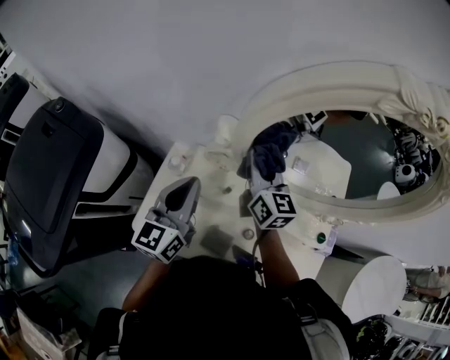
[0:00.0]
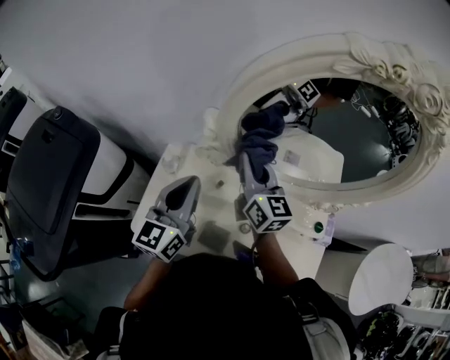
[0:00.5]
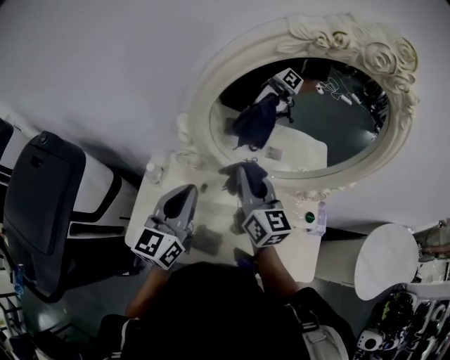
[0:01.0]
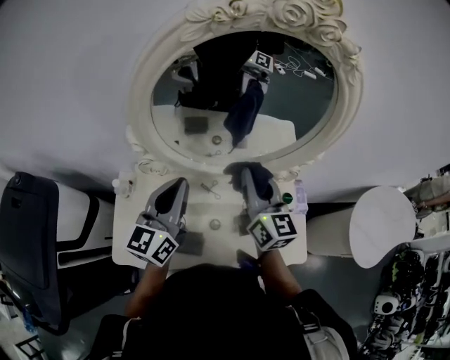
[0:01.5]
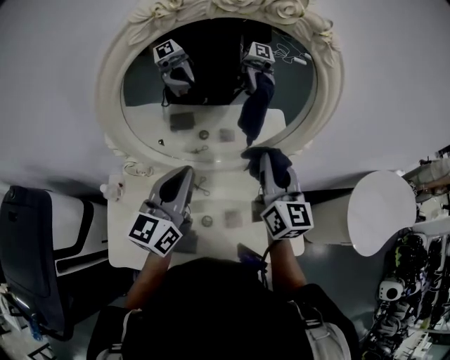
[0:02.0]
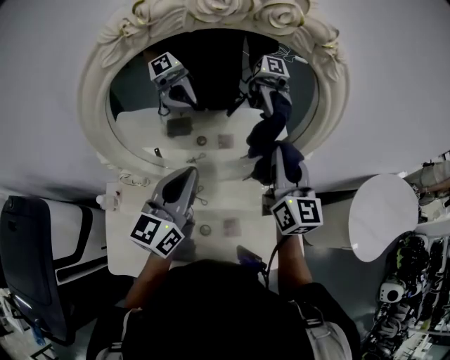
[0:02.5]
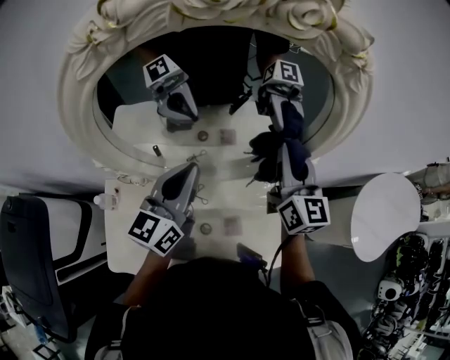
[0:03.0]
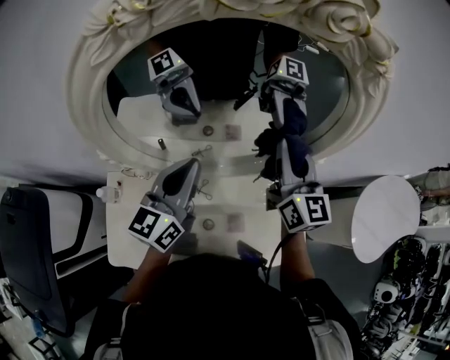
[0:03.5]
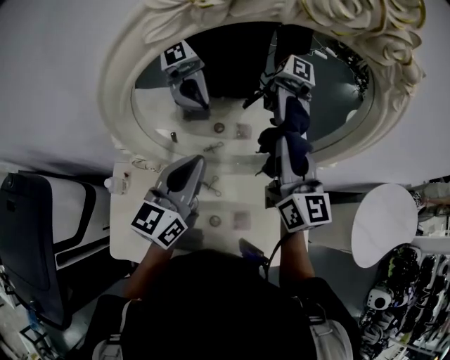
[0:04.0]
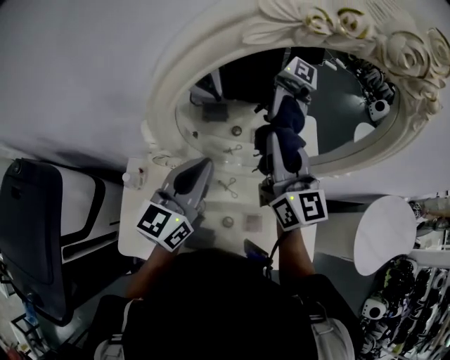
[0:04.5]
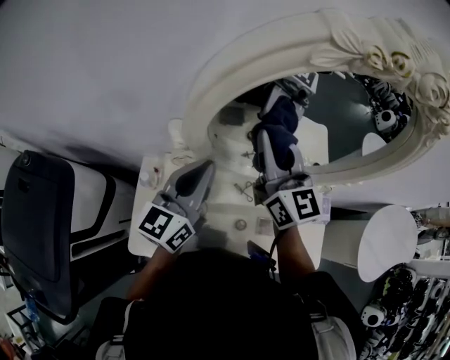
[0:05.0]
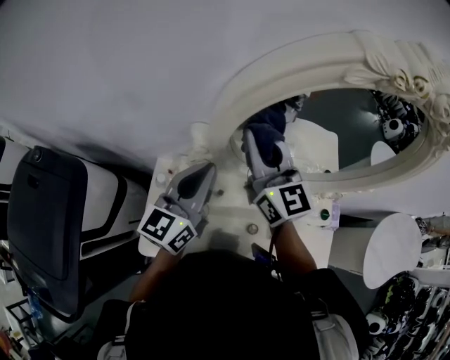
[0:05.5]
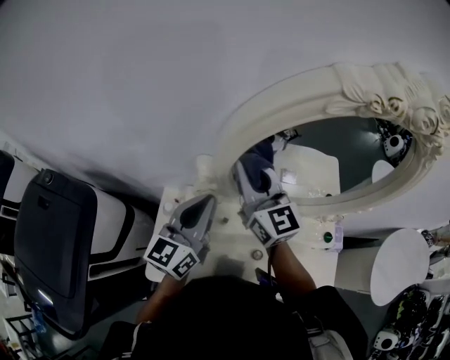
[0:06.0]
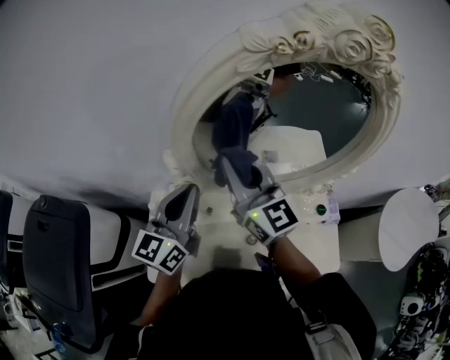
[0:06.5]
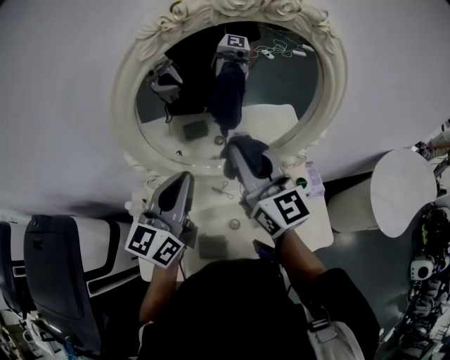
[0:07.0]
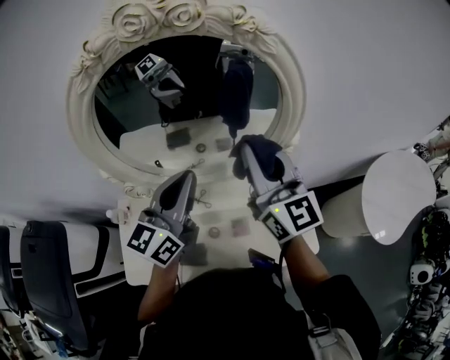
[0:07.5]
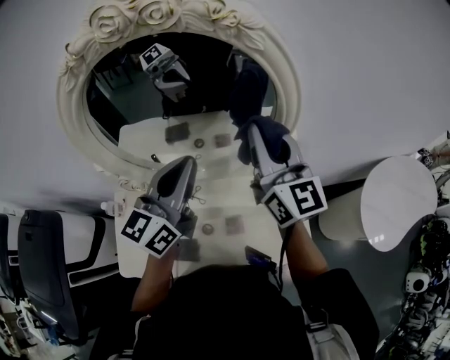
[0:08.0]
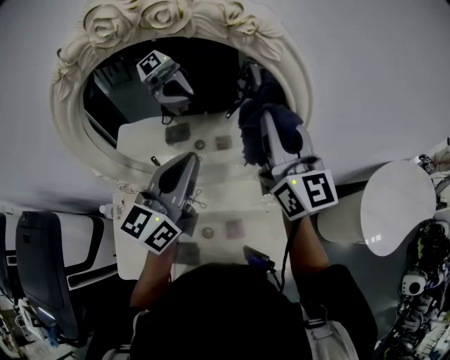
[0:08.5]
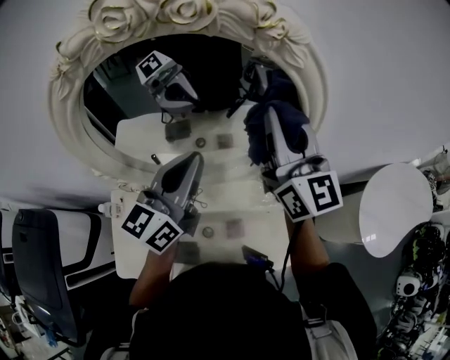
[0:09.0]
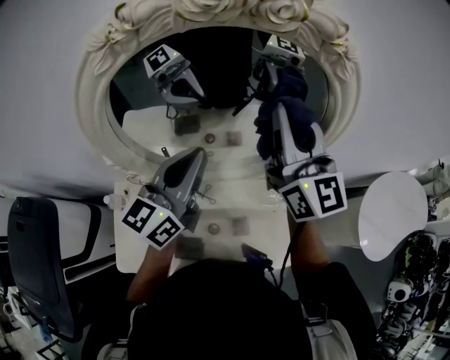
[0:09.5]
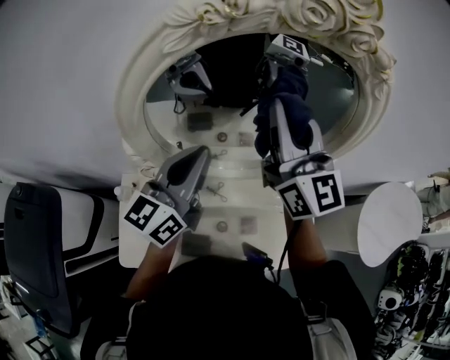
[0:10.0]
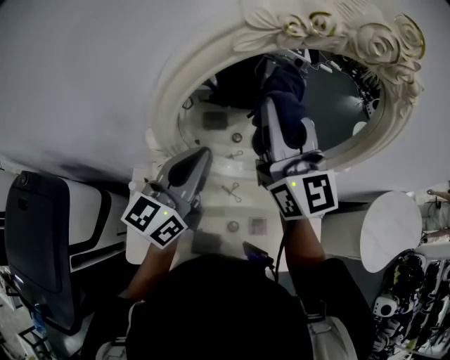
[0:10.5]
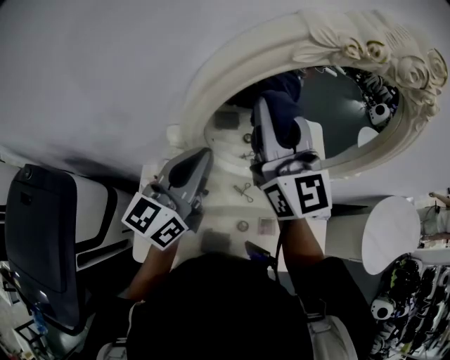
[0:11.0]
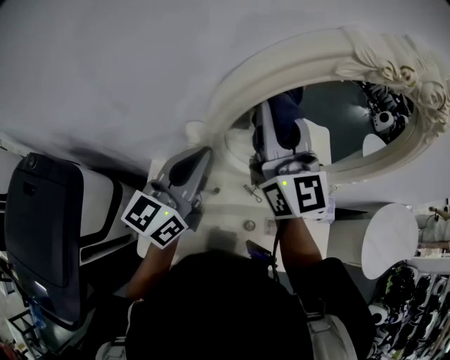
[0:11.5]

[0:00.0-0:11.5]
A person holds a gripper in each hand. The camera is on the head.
0:00.0 to 0:02.0: The left gripper moves approximately 25 cm, and turns by approximately 30 degrees; the right gripper shifts by some 35 cm, and swivels approximately 30 degrees.
0:02.0 to 0:04.0: The left gripper heads forward, covering roughly 5 cm. Meanwhile the right gripper heads forward and to the left, covering about 10 cm.
0:04.0 to 0:06.0: The right gripper shifts roughly 30 cm to the left, and swivels approximately 20 degrees. Meanwhile the left gripper goes roughly 15 cm to the left.
0:06.0 to 0:07.5: The two grippers go about 30 cm to the right.
0:07.5 to 0:09.5: The left gripper goes roughly 5 cm forward. Meanwhile the right gripper goes roughly 10 cm forward and upward.
0:09.5 to 0:11.5: Both grippers travel together to the left, roughly 25 cm.

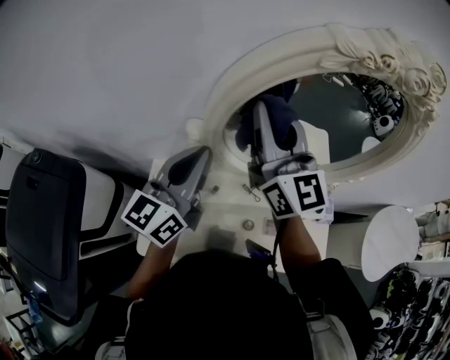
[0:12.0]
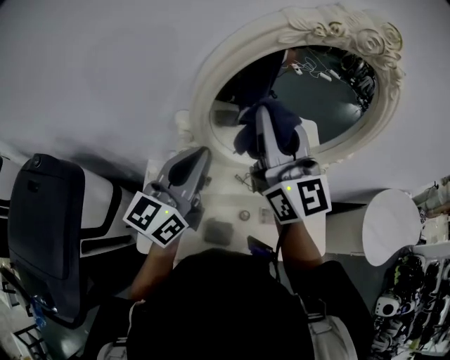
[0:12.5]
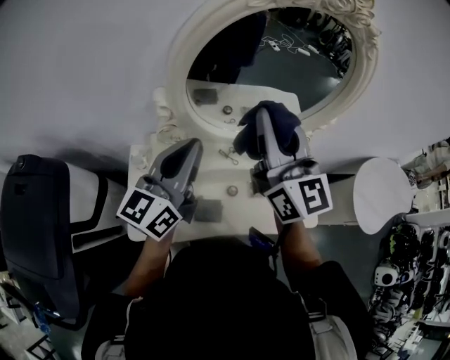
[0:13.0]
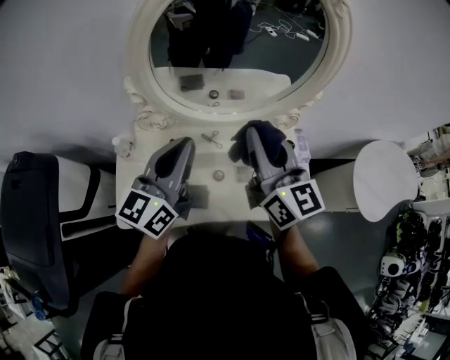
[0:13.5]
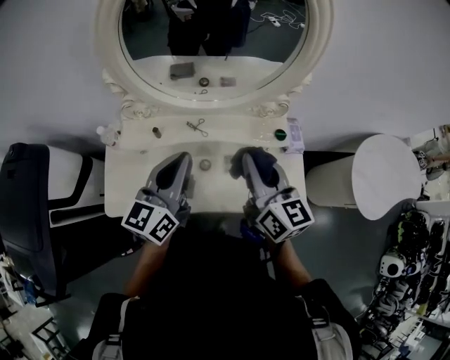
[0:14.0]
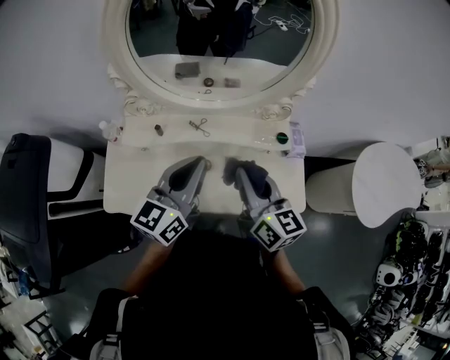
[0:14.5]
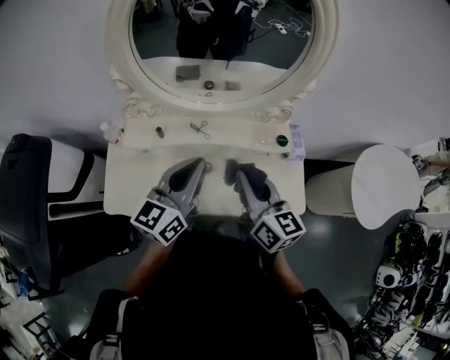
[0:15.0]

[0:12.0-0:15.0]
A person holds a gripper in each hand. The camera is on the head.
0:12.0 to 0:13.5: The right gripper moves to the right, backward and downward, some 25 cm, while the left gripper is displaced to the right and backward by about 20 cm.
0:13.5 to 0:15.0: The right gripper moves downward, to the right and backward, approximately 15 cm. The left gripper goes approximately 15 cm to the right and downward.

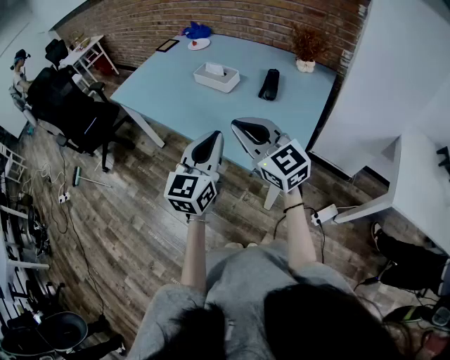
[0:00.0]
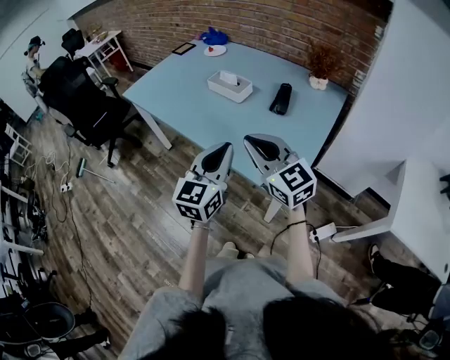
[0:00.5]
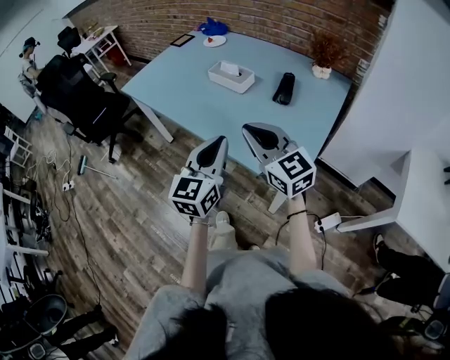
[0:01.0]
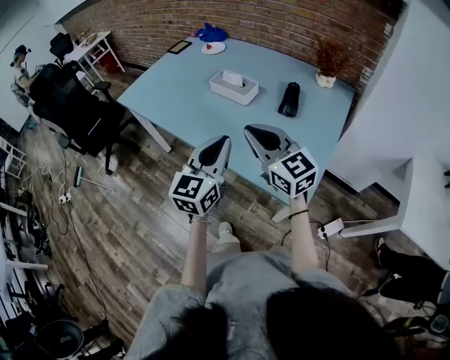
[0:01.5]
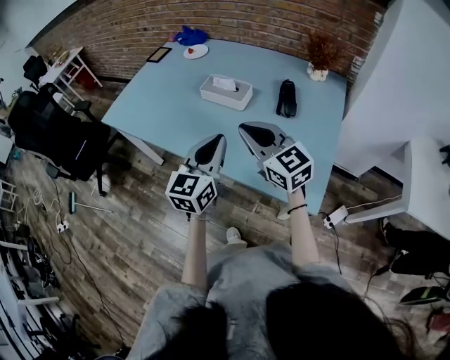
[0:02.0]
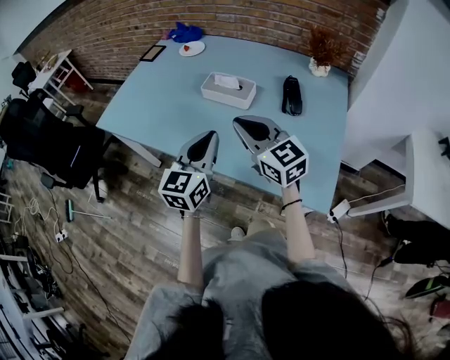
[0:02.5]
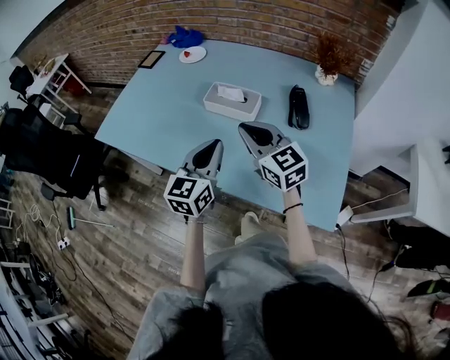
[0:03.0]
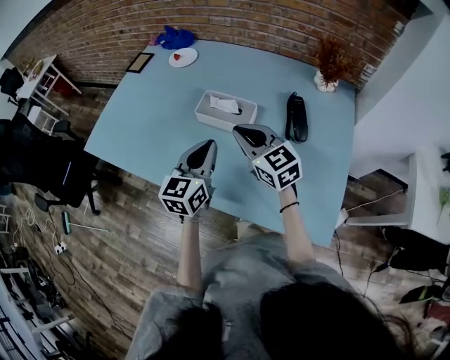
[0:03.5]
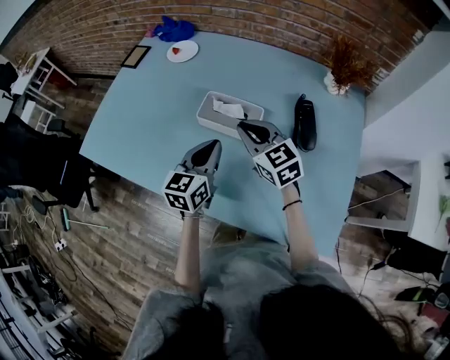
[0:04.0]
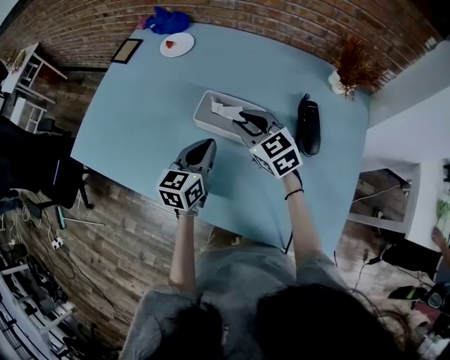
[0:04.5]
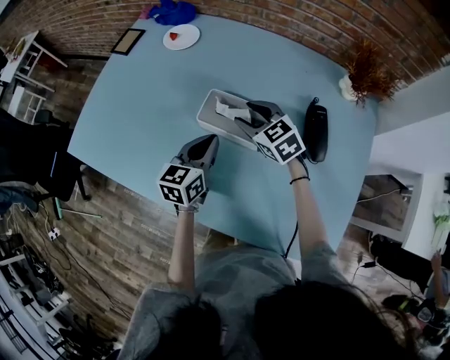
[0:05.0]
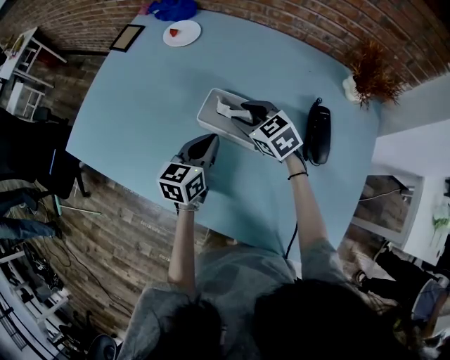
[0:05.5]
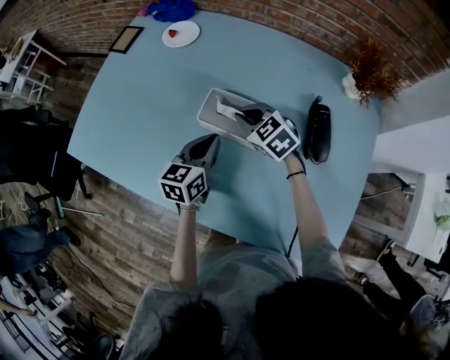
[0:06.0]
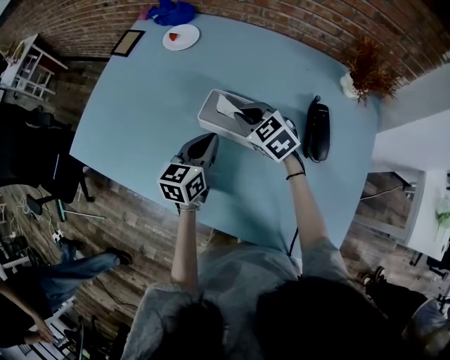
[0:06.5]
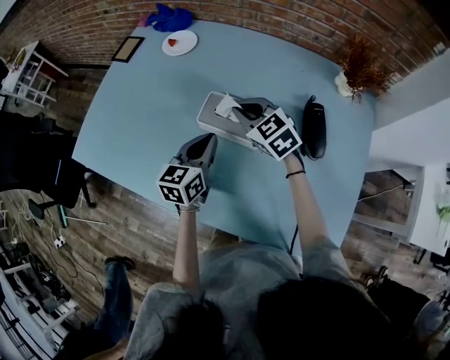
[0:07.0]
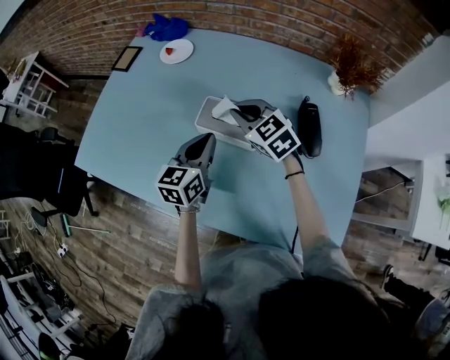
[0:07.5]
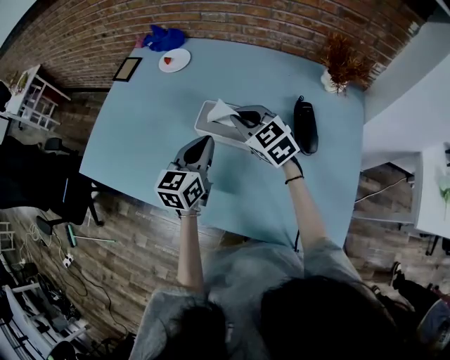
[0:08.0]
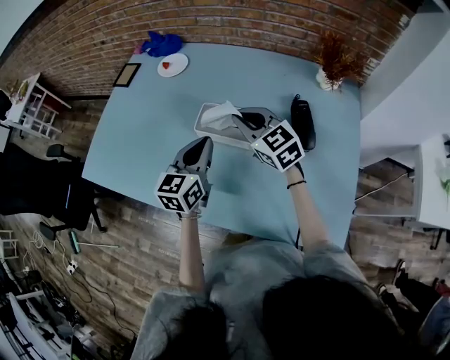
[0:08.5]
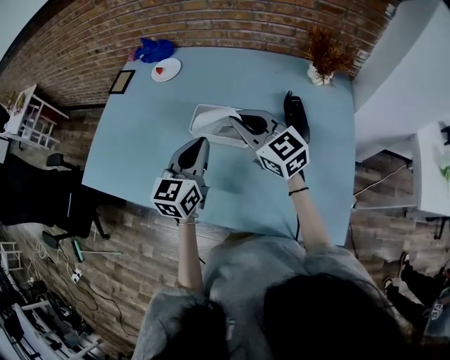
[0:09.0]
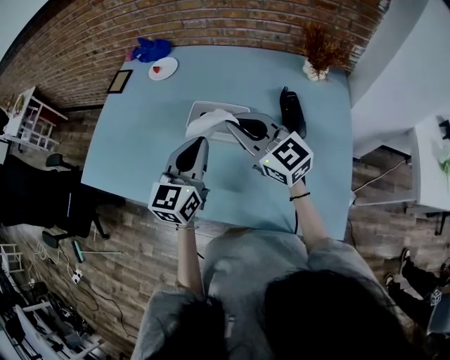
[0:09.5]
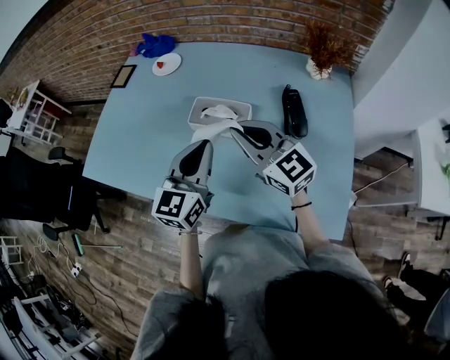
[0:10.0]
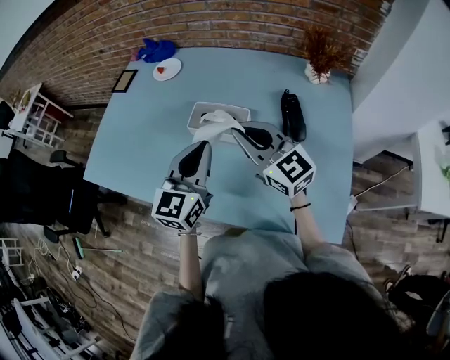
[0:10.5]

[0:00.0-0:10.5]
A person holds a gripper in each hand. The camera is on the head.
0:00.0 to 0:02.0: The right gripper heads forward, covering about 15 cm; the left gripper goes some 20 cm forward and to the left.
0:02.0 to 0:04.0: The right gripper heads forward, covering roughly 25 cm, while the left gripper goes roughly 25 cm forward and downward.
0:04.0 to 0:06.5: The grippers both shift forward and downward by approximately 10 cm. The right gripper changes its angle by about 20 degrees, and opens, then closes once more.
0:06.5 to 0:08.5: The left gripper is displaced upward by roughly 10 cm. The right gripper shifts some 10 cm upward and backward, and turns by about 20 degrees.
0:08.5 to 0:10.5: Both grippers move backward and upward, about 10 cm.

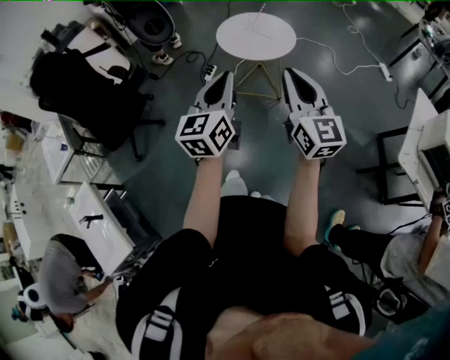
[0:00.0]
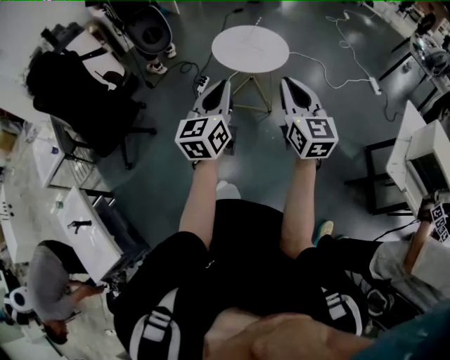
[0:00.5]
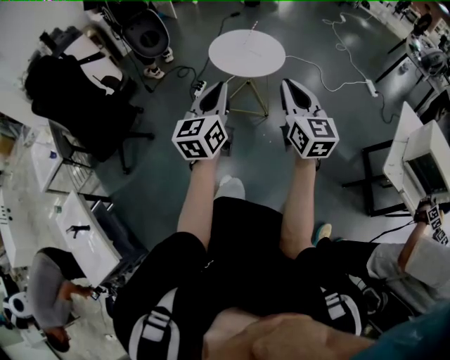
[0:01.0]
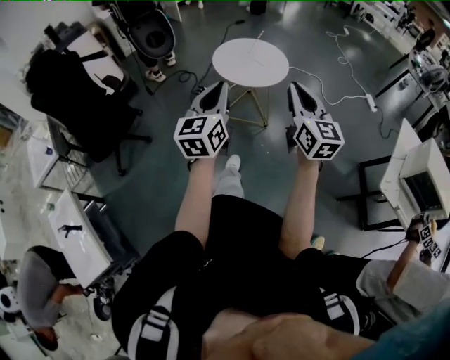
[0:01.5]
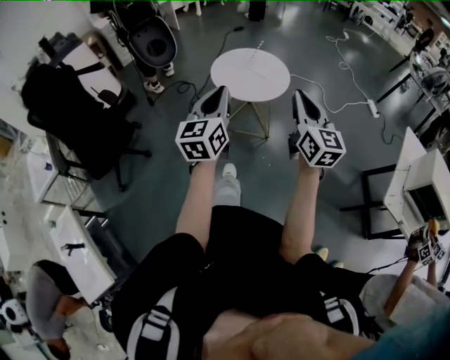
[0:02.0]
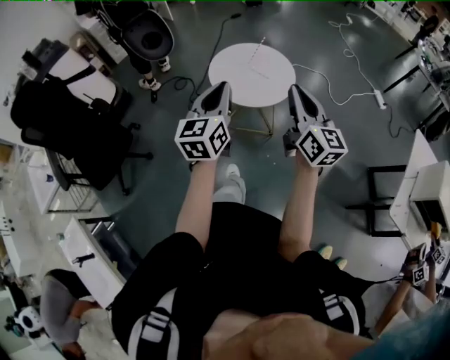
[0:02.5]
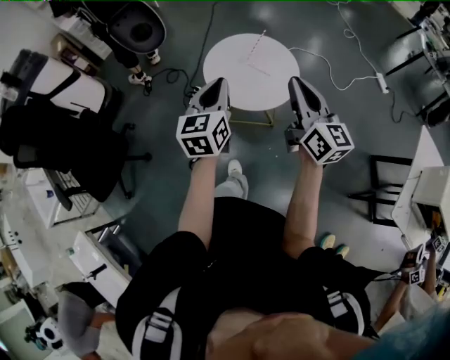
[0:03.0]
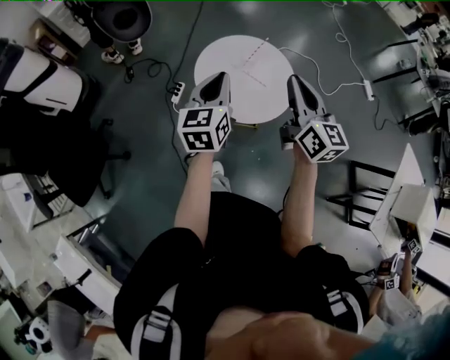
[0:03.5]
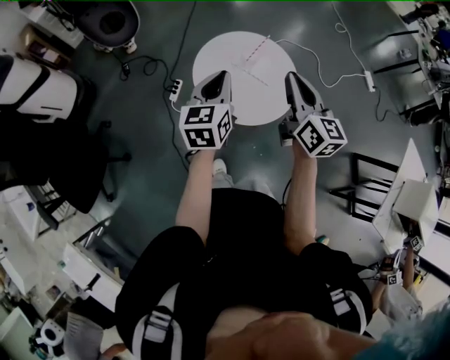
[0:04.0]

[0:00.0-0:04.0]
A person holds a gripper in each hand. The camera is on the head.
0:00.0 to 0:02.0: Both grippers travel together forward, roughly 15 cm.
0:02.0 to 0:04.0: The two grippers go some 40 cm forward.
